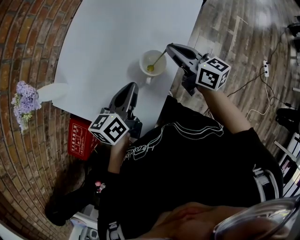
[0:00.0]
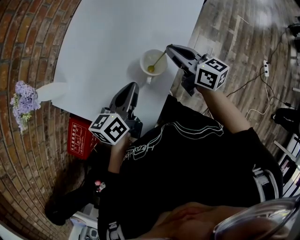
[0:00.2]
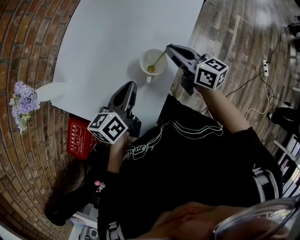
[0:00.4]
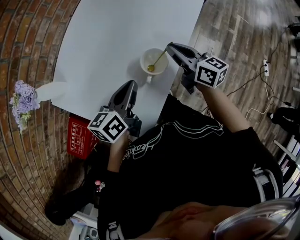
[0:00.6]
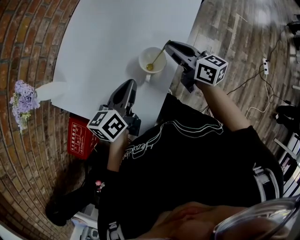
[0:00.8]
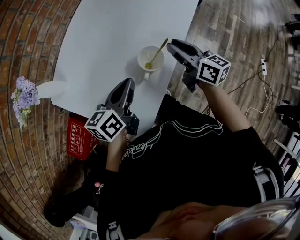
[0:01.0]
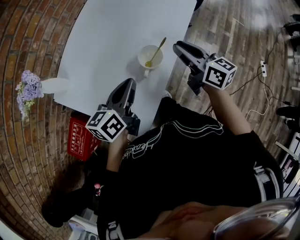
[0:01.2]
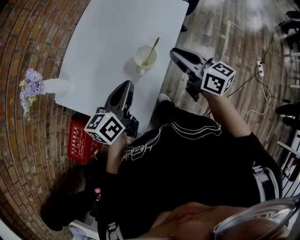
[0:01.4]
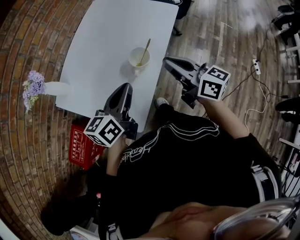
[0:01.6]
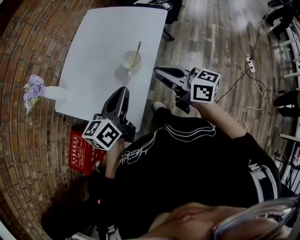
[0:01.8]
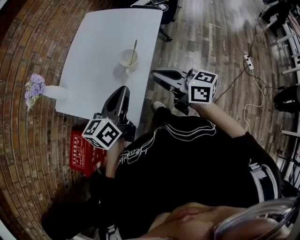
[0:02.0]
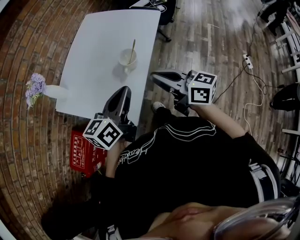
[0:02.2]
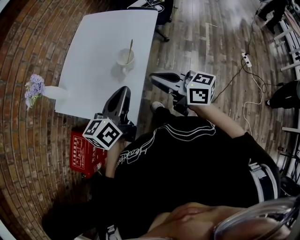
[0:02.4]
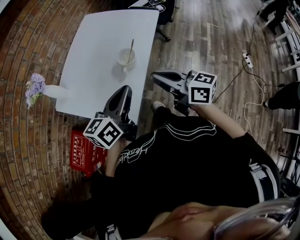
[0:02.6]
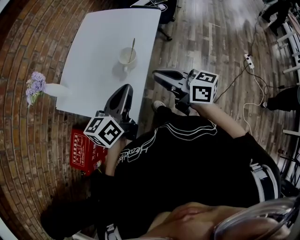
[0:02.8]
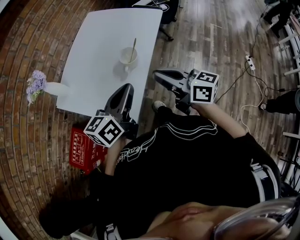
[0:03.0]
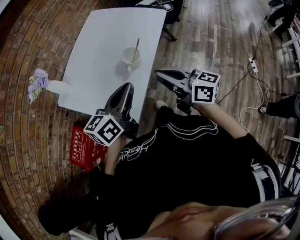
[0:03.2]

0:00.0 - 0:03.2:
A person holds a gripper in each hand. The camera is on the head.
0:00.0 - 0:01.6: The right gripper heads backward and upward, covering approximately 20 cm, and opens, then closes again, while the left gripper heads upward and backward, covering roughly 15 cm.
0:01.6 - 0:03.2: The two grippers go some 10 cm backward.

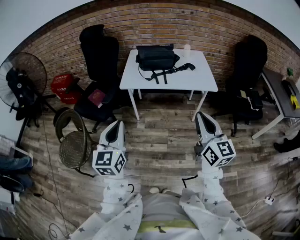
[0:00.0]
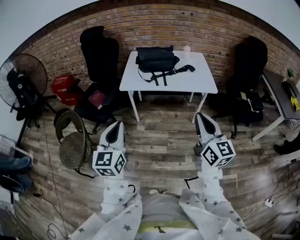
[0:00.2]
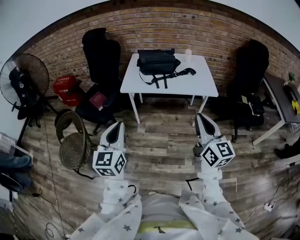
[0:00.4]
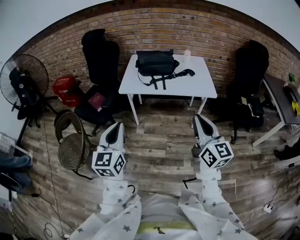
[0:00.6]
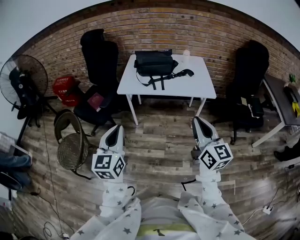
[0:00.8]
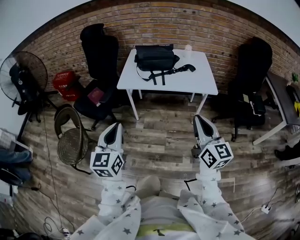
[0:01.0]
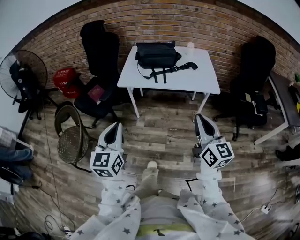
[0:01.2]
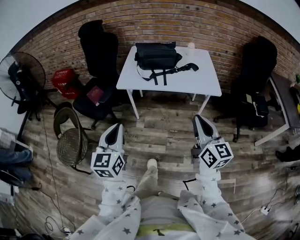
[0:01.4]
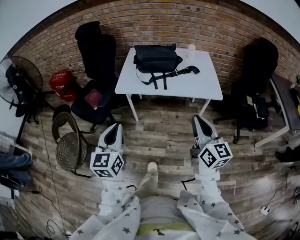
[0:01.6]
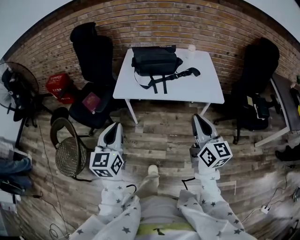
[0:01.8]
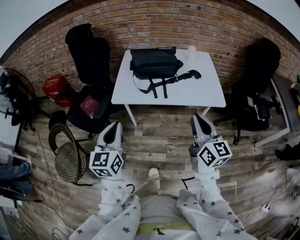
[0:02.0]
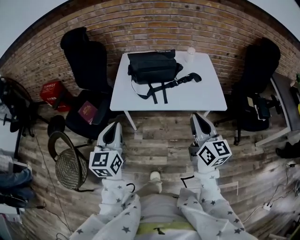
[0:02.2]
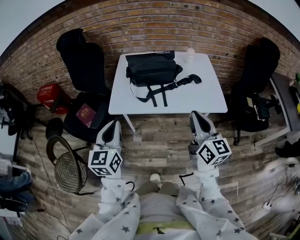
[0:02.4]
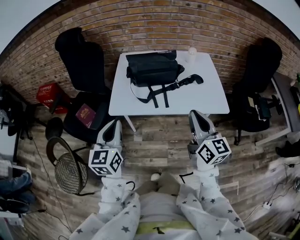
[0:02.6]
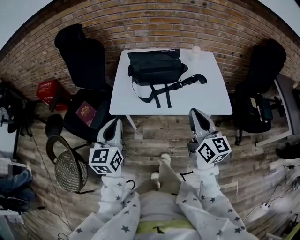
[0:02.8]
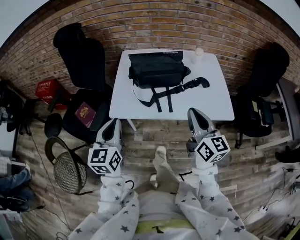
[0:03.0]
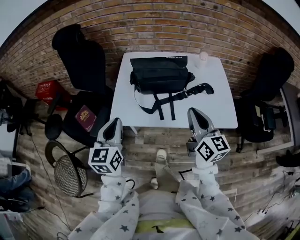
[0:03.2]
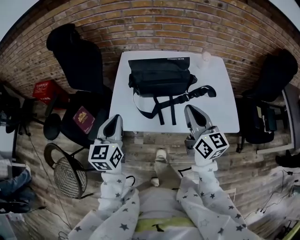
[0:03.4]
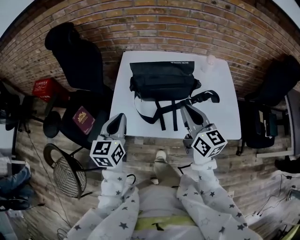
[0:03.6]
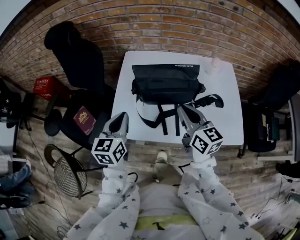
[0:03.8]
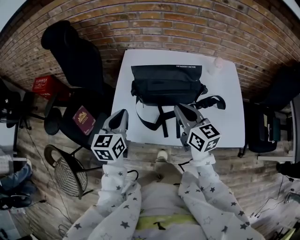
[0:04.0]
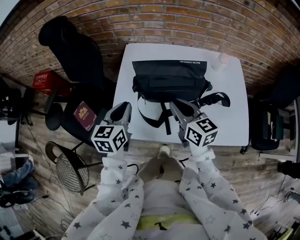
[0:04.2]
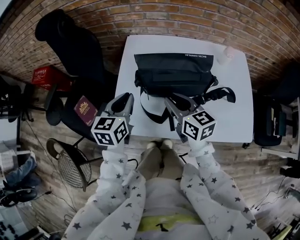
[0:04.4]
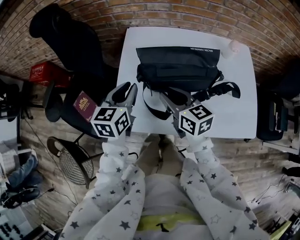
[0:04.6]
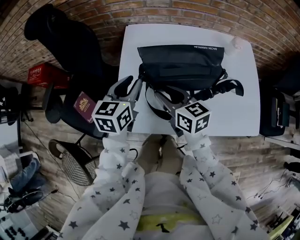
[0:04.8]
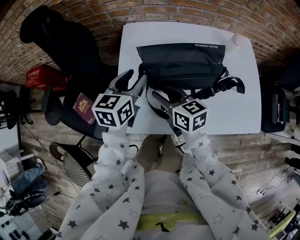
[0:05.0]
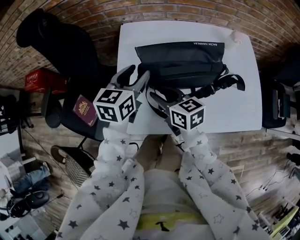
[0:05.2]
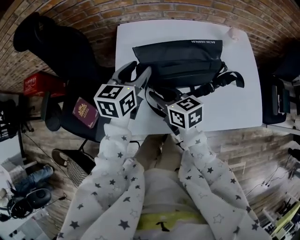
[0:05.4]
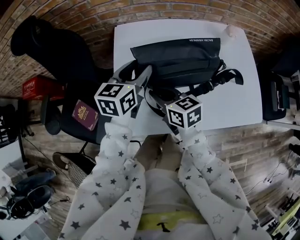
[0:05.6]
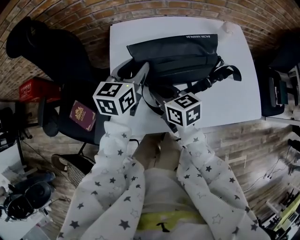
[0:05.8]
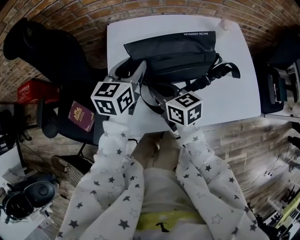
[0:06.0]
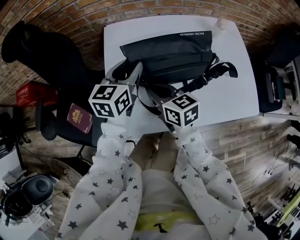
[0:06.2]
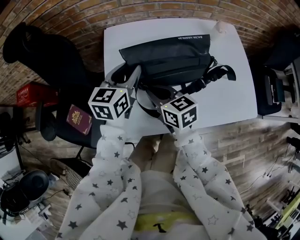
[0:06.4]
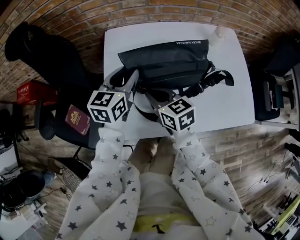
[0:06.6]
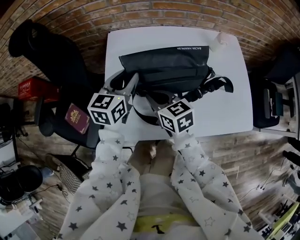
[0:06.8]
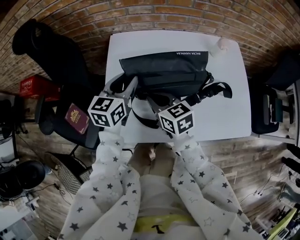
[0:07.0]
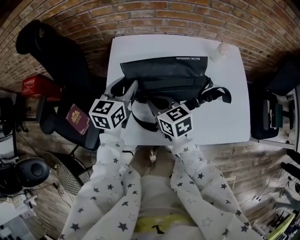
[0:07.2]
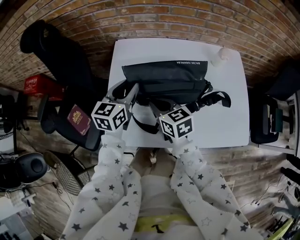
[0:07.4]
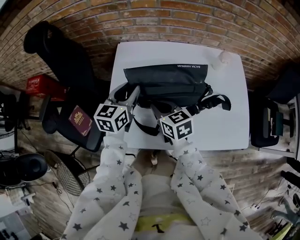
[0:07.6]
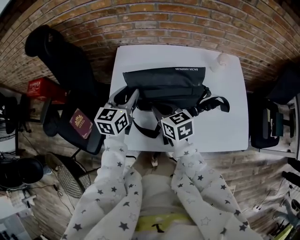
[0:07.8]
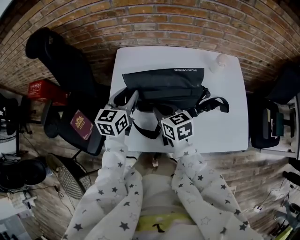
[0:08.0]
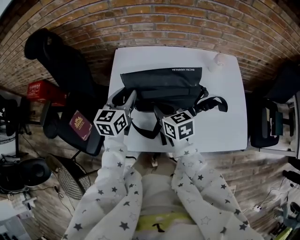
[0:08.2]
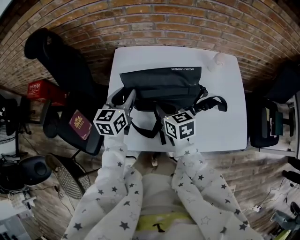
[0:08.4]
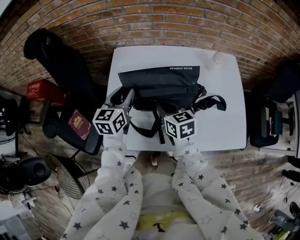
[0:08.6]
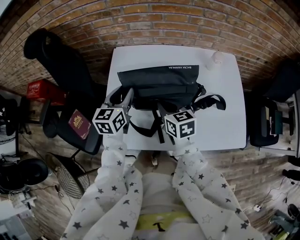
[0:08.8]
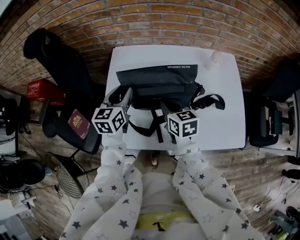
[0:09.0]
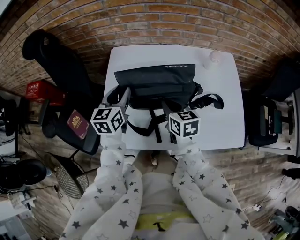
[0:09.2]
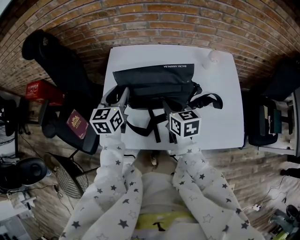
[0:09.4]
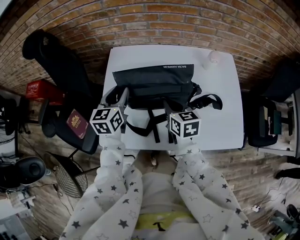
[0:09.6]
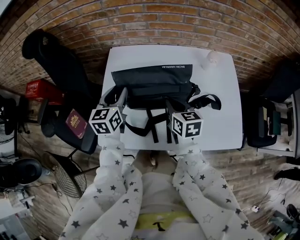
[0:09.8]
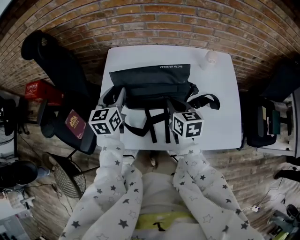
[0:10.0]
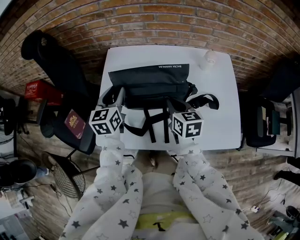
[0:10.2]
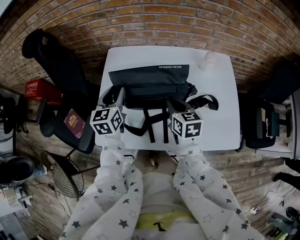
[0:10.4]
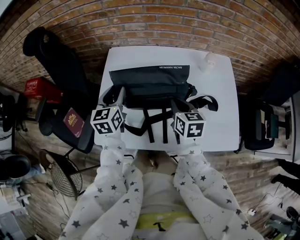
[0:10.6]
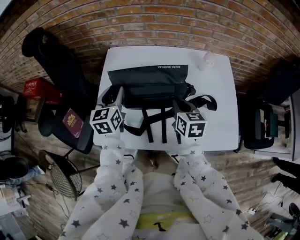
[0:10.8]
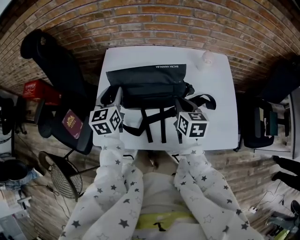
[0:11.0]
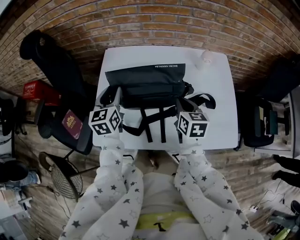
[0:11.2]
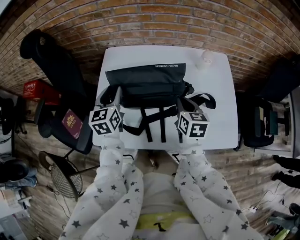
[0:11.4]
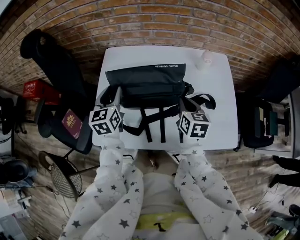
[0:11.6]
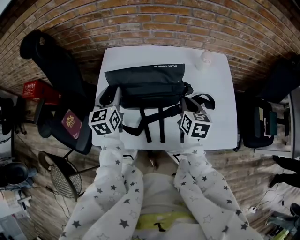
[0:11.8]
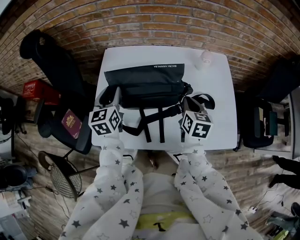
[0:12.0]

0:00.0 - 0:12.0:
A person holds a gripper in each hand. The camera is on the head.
0:00.0 - 0:01.6: Both grippers travel together forward, about 10 cm.
0:01.6 - 0:03.0: Both grippers travel together forward, some 25 cm.
0:03.0 - 0:04.4: The right gripper goes some 30 cm forward, downward and to the left, rotates approximately 30 degrees, and opens. The left gripper travels forward by some 25 cm.
0:04.4 - 0:06.0: The right gripper heads to the left and downward, covering roughly 10 cm. The left gripper travels forward and to the right by some 10 cm, and opens.
0:06.0 - 0:07.6: There are only small adjustments of the grippers.
0:07.6 - 0:09.0: The right gripper heads to the right, covering some 10 cm.
0:09.0 - 0:10.4: The right gripper moves to the right, roughly 5 cm.
0:10.4 - 0:12.0: The right gripper is displaced to the right by some 10 cm.

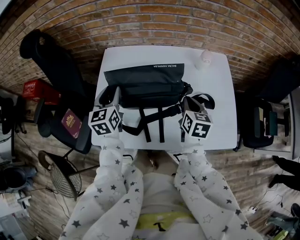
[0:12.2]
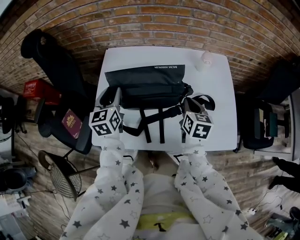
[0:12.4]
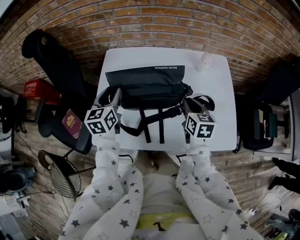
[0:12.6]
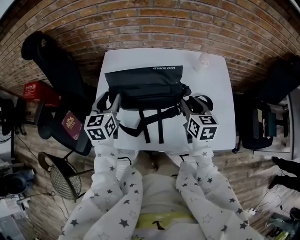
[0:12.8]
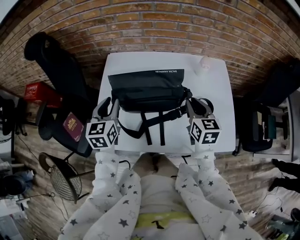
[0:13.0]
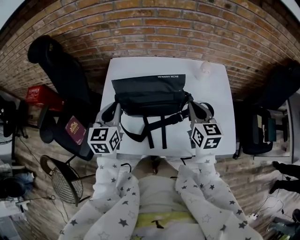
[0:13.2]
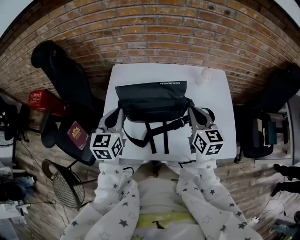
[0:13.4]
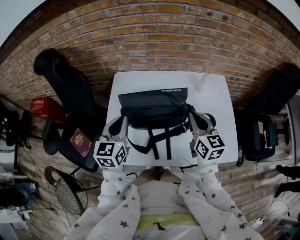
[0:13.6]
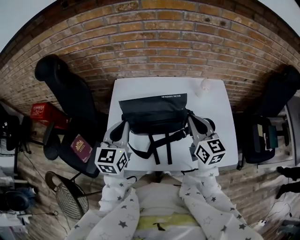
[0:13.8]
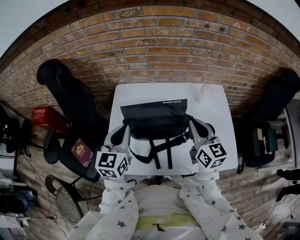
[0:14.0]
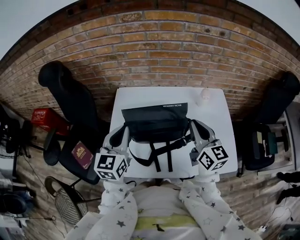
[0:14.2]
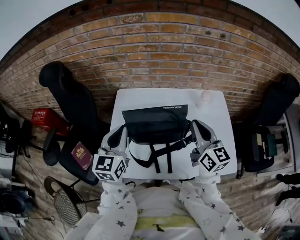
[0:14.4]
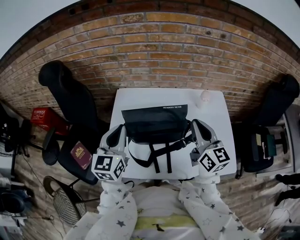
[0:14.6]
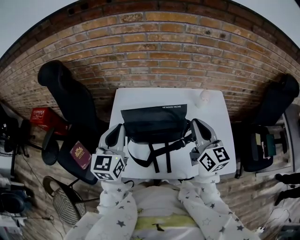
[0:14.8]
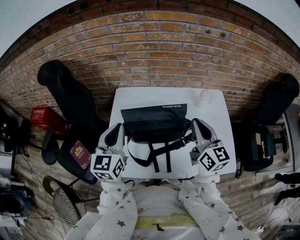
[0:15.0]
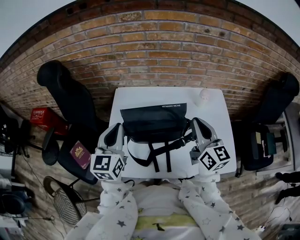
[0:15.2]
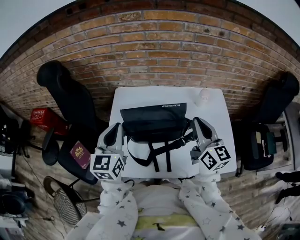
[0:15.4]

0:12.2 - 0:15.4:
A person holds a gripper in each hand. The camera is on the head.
0:12.2 - 0:13.8: The left gripper heads upward and backward, covering some 10 cm, and closes its fingers; the right gripper travels upward by some 15 cm, turns by some 30 degrees, and opens and closes again.
0:13.8 - 0:15.4: The right gripper is displaced upward by roughly 5 cm.

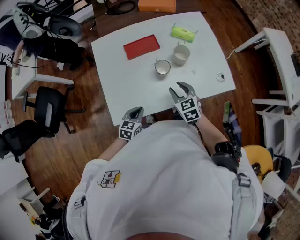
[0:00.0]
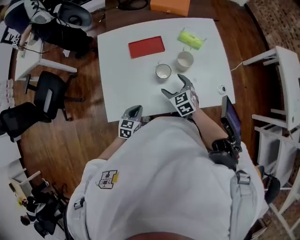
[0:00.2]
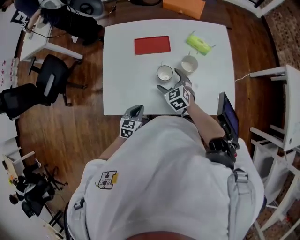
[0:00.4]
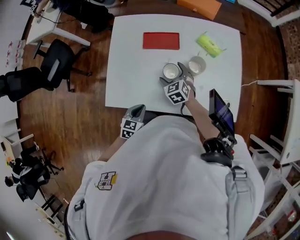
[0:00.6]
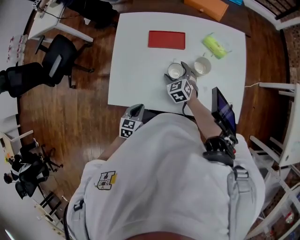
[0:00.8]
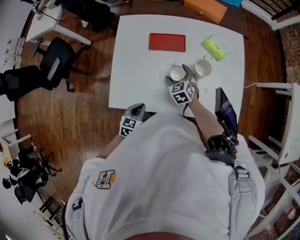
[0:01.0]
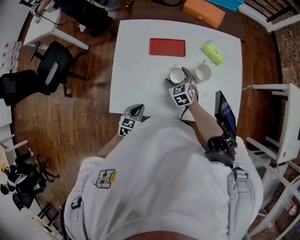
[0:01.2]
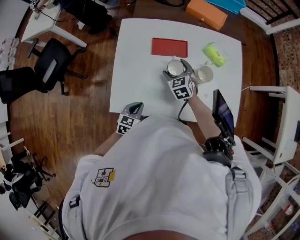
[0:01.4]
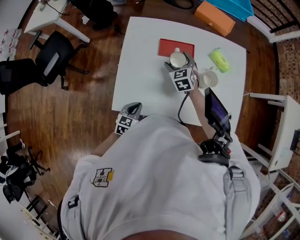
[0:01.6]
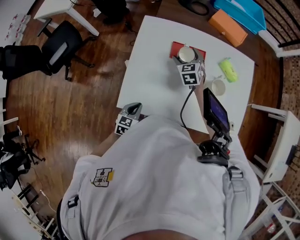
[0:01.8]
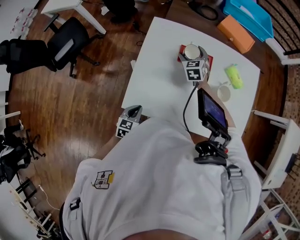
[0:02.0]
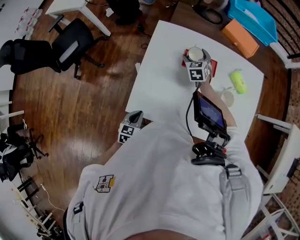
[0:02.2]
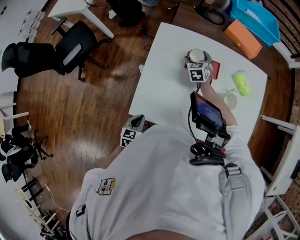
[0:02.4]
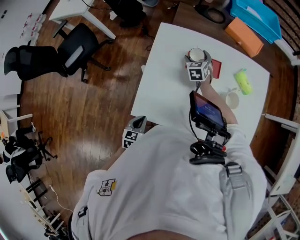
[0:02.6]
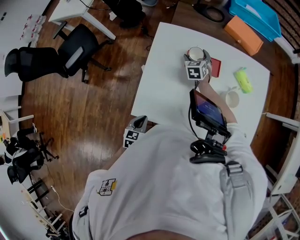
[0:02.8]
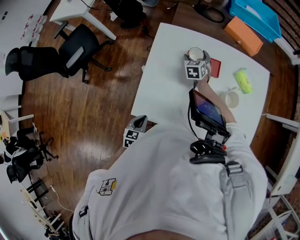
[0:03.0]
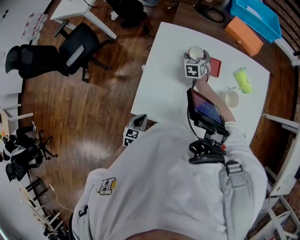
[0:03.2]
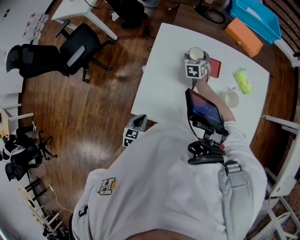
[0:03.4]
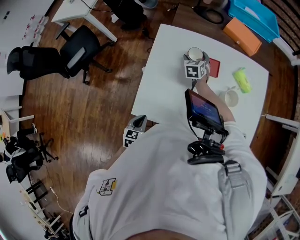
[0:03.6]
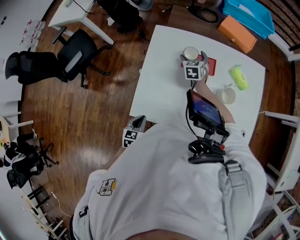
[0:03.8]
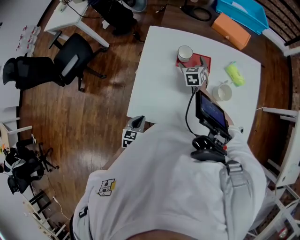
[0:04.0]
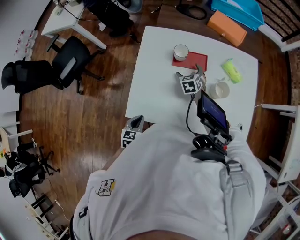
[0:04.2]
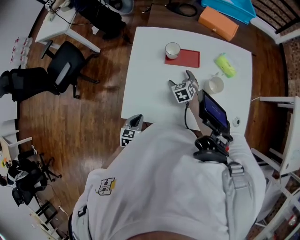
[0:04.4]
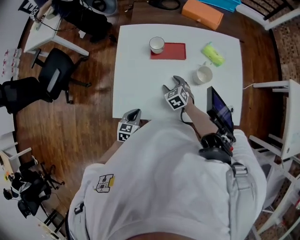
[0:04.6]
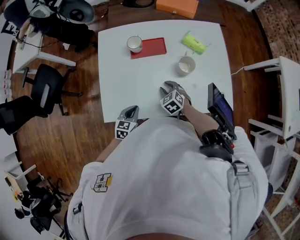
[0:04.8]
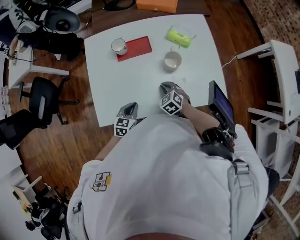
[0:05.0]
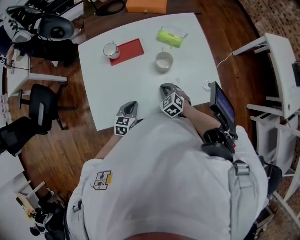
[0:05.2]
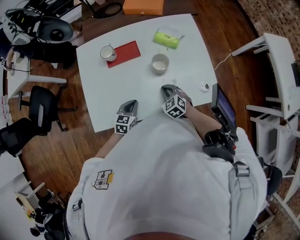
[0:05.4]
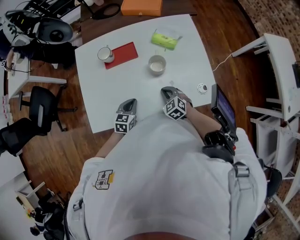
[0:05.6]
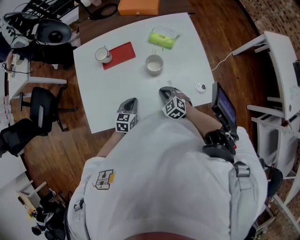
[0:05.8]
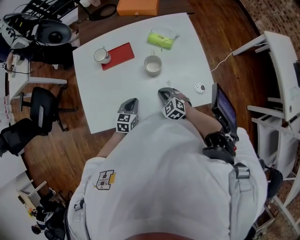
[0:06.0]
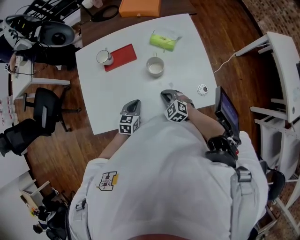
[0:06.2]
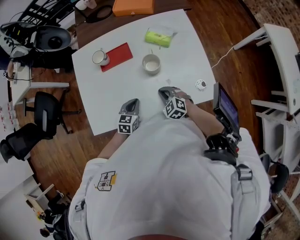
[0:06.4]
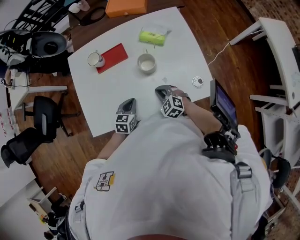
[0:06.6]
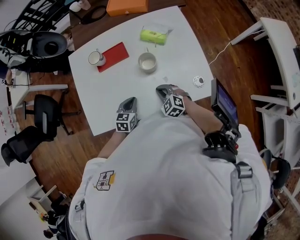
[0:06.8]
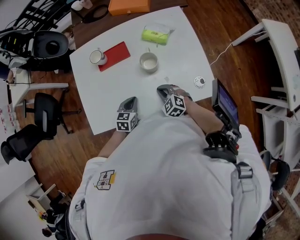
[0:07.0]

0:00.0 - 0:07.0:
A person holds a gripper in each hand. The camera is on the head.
0:00.0 - 0:01.4: The right gripper goes some 20 cm forward and to the left, and opens its fingers.
0:01.4 - 0:02.8: The left gripper goes some 10 cm to the left; the right gripper is displaced forward and to the left by about 15 cm.
0:02.8 - 0:04.2: The right gripper shifts some 10 cm backward.
0:04.2 - 0:05.6: The right gripper shifts some 30 cm to the right and backward, and closes, while the left gripper is displaced to the right and forward by some 25 cm, and rotates about 20 degrees.
0:05.6 - 0:07.0: The grippers move only a little.
